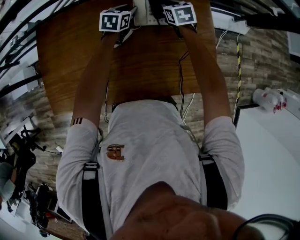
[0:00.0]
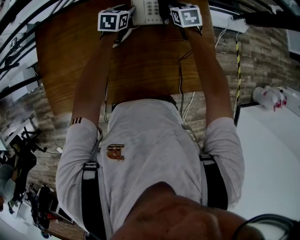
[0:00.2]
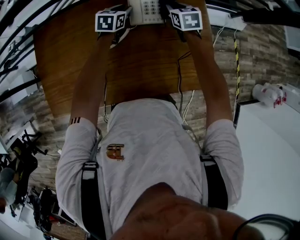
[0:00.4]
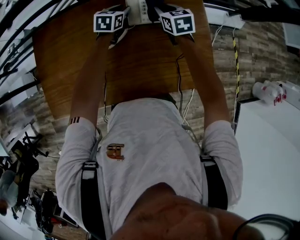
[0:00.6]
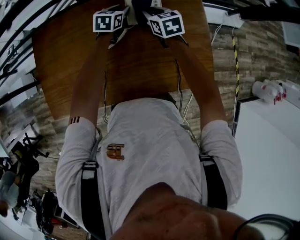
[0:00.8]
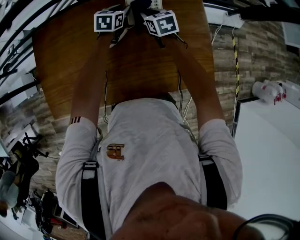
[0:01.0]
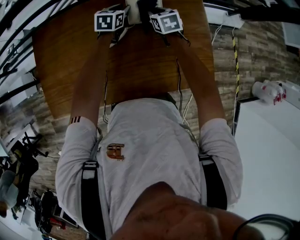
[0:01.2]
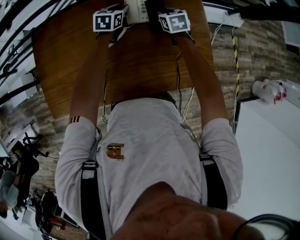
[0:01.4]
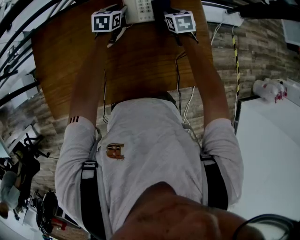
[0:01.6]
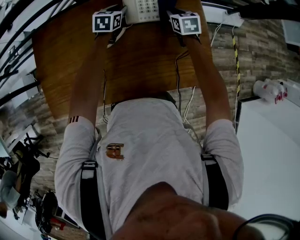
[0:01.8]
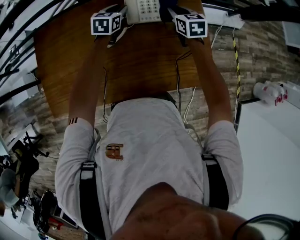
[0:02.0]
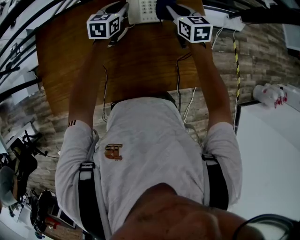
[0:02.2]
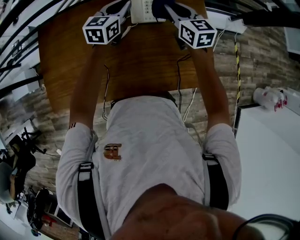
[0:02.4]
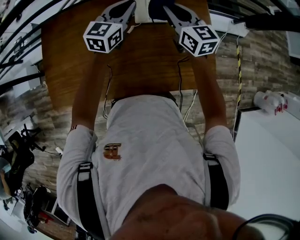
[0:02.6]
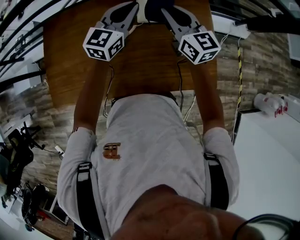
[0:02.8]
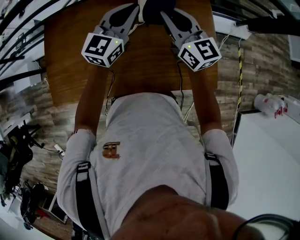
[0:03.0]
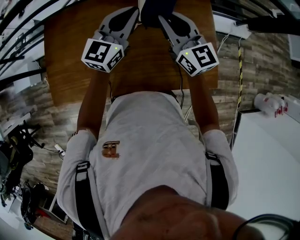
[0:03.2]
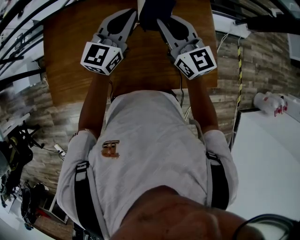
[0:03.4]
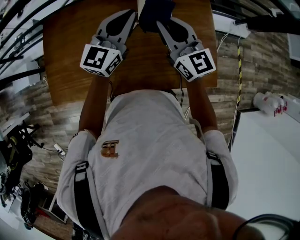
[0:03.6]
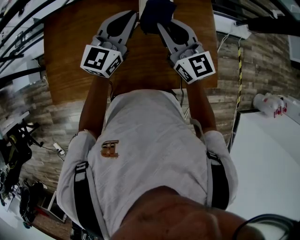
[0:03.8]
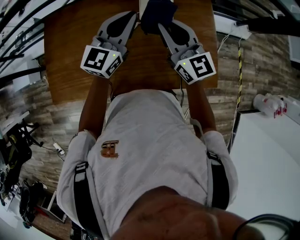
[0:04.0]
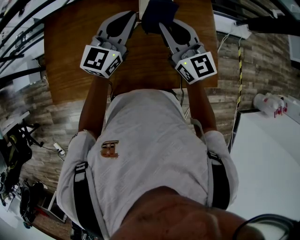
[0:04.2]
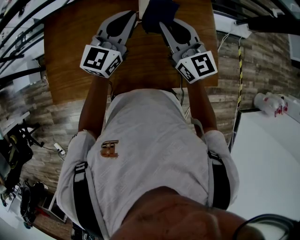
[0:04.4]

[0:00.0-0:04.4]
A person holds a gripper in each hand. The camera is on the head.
0:00.0 to 0:01.4: The right gripper goes left and right, roughly 10 cm each way, reversing 2 times.
0:01.4 to 0:03.0: Both grippers move upward and backward, about 25 cm. The right gripper angles its fingers upward, by roughly 50 degrees. Meanwhile the left gripper angles its fingers upward, by approximately 40 degrees, and closes up.
0:03.0 to 0:04.4: The right gripper moves roughly 5 cm.

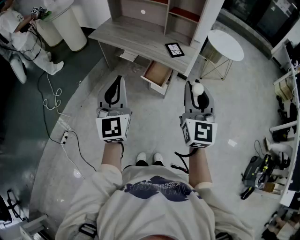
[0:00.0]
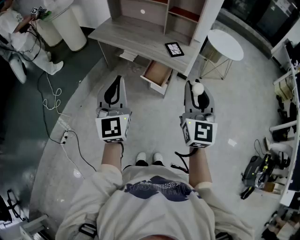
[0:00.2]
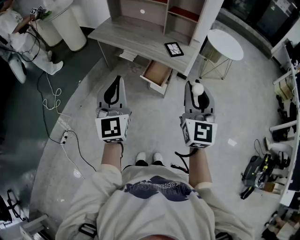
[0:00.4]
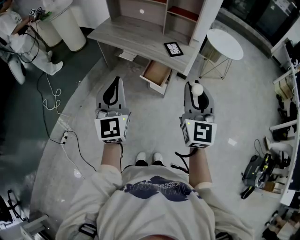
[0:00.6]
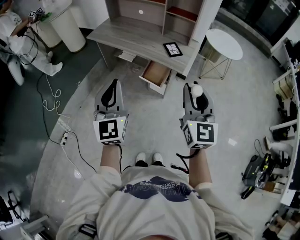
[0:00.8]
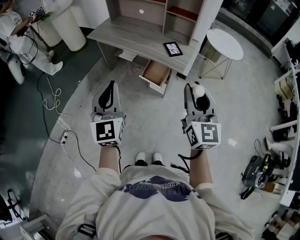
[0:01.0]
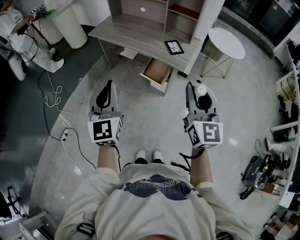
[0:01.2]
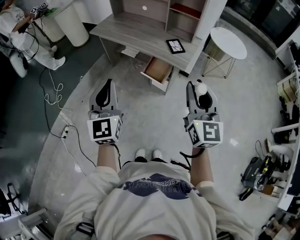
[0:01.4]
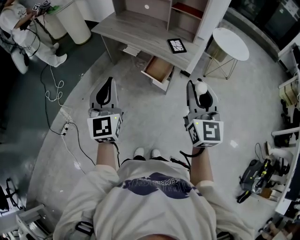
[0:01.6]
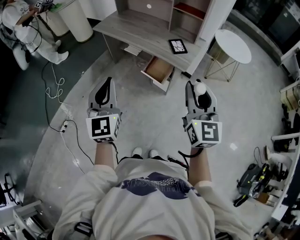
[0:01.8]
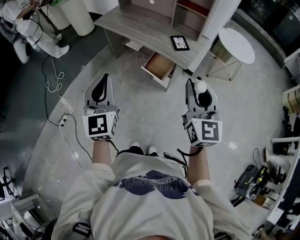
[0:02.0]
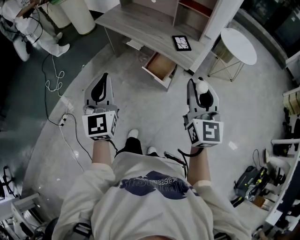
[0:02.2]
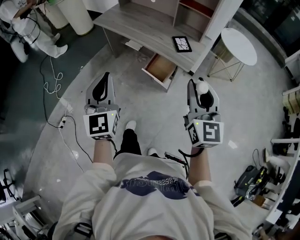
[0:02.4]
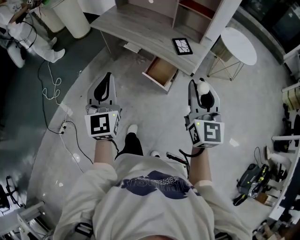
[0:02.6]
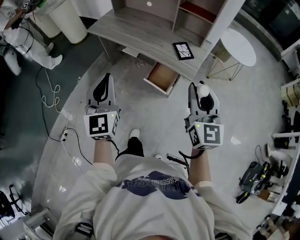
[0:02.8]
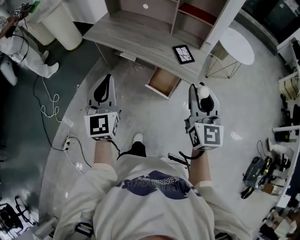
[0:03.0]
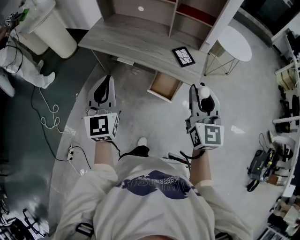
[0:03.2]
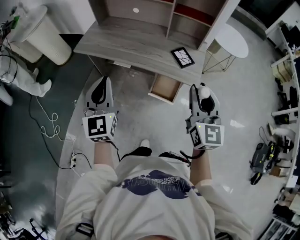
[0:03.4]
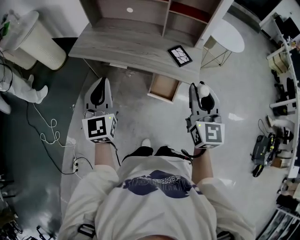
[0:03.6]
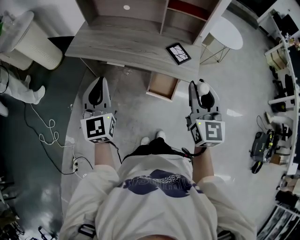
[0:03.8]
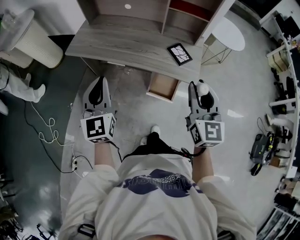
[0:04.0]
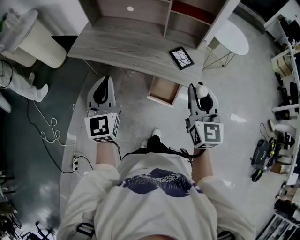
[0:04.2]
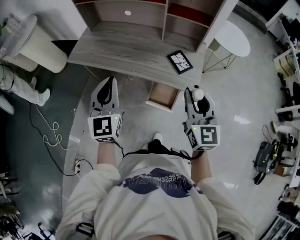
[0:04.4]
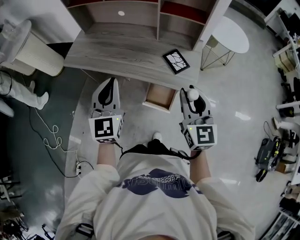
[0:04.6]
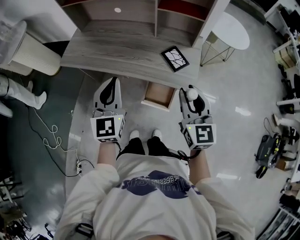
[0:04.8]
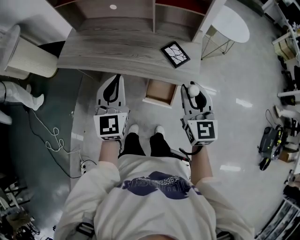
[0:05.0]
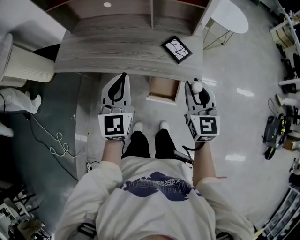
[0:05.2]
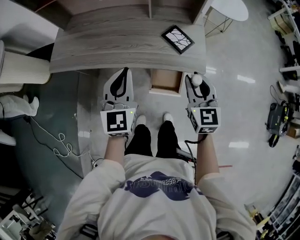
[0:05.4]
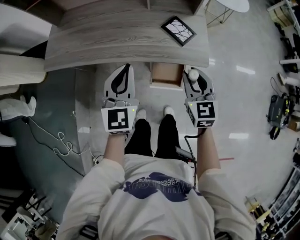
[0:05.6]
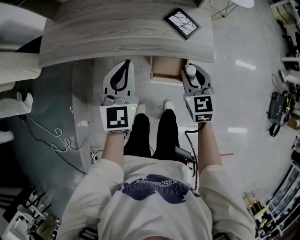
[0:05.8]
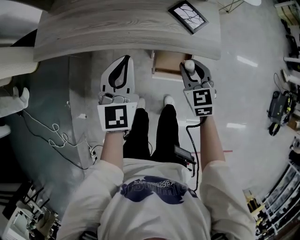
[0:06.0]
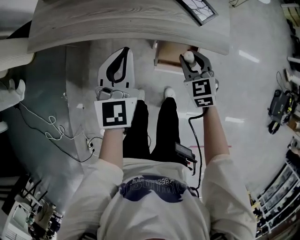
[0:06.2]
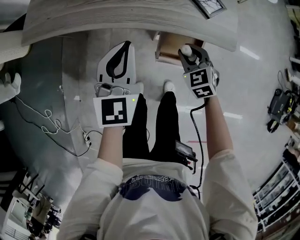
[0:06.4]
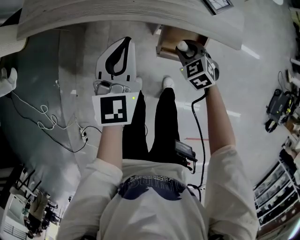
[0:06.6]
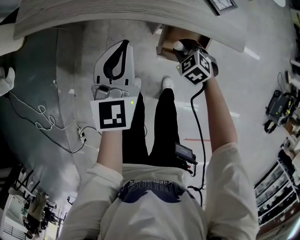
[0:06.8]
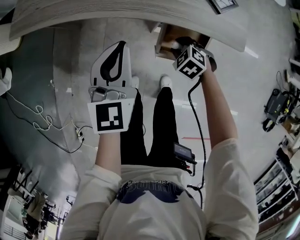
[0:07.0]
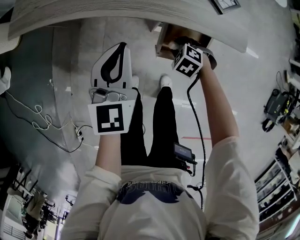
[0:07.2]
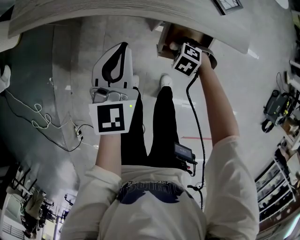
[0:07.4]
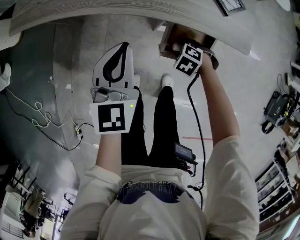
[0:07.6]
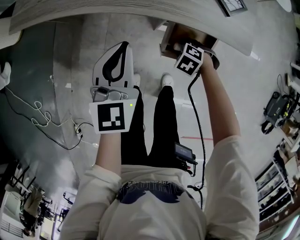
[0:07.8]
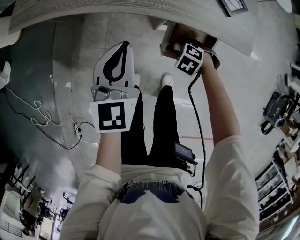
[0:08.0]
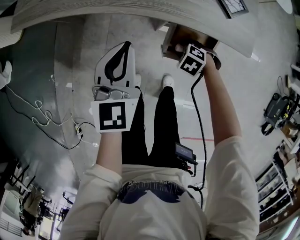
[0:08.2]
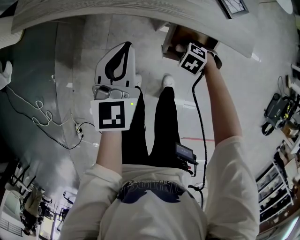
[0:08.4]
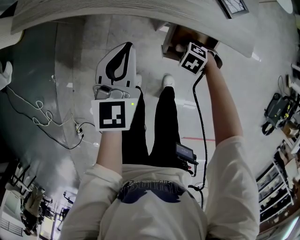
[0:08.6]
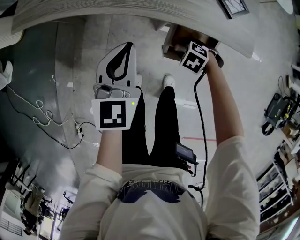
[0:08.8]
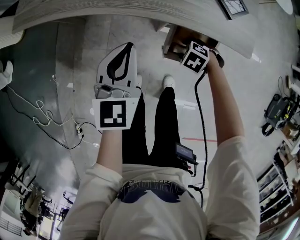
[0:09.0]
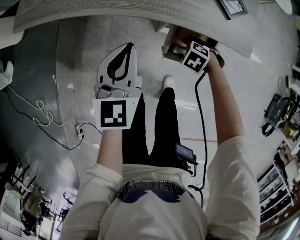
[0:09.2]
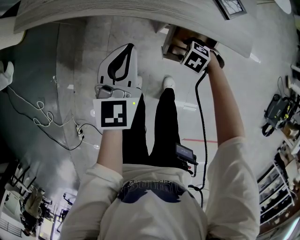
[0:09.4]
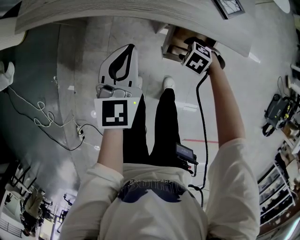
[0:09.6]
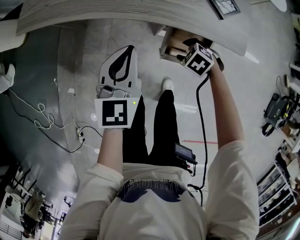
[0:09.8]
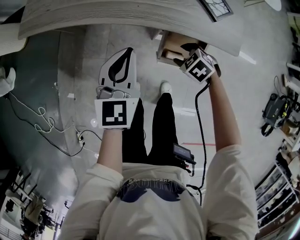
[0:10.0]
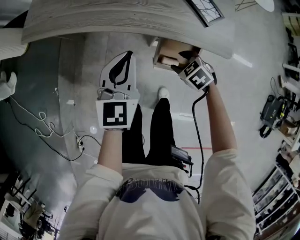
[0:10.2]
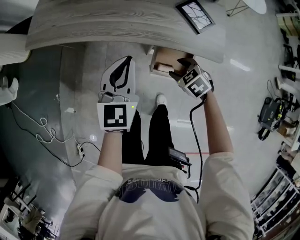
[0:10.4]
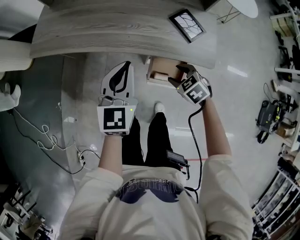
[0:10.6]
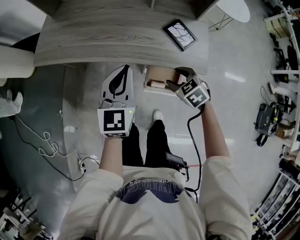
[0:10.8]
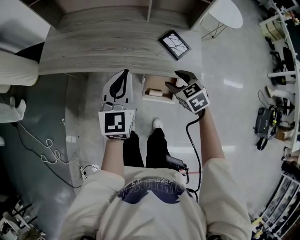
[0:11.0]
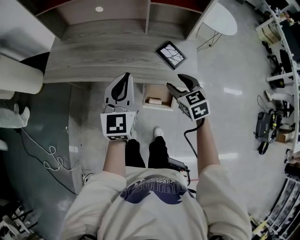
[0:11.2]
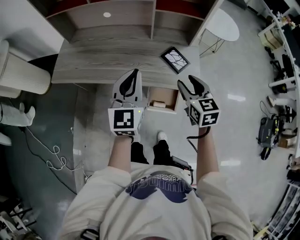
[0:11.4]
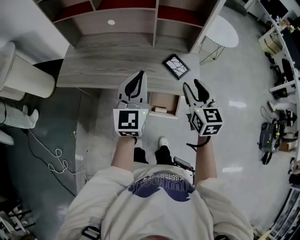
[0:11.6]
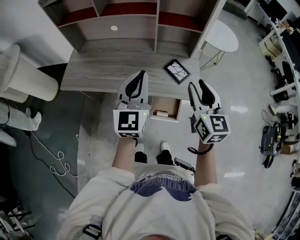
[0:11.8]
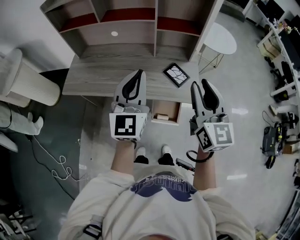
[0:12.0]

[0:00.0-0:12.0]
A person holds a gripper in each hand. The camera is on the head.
0:00.0 to 0:01.6: There are only small adjustments of the grippers.
0:01.6 to 0:03.0: The grippers both shift forward by about 20 cm.
0:03.0 to 0:04.4: The two grippers go some 15 cm forward.
0:04.4 to 0:06.0: The left gripper goes about 20 cm downward and forward, and changes its angle by roughly 20 degrees, while the right gripper is displaced downward by some 30 cm, and tilts its fingers approximately 30 degrees downward.
0:06.0 to 0:07.6: The right gripper moves downward, some 30 cm, and points its fingers approximately 50 degrees further downward. Meanwhile the left gripper heads downward, covering about 15 cm.
0:07.6 to 0:09.0: The right gripper opens up.
0:09.0 to 0:10.4: The left gripper moves upward, some 10 cm, while the right gripper travels upward by roughly 15 cm, and swivels some 30 degrees.
0:10.4 to 0:12.0: The left gripper moves upward, approximately 30 cm, and rotates approximately 30 degrees. The right gripper moves upward, about 50 cm, angles its fingers upward, by roughly 70 degrees, and closes its fingers.

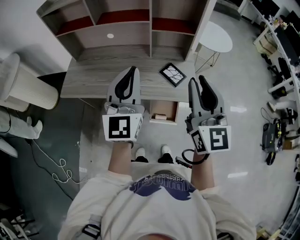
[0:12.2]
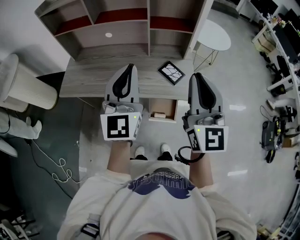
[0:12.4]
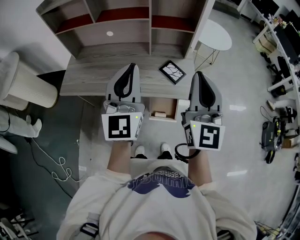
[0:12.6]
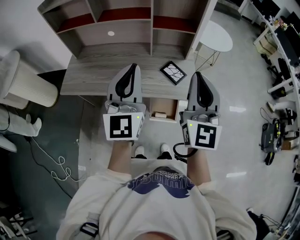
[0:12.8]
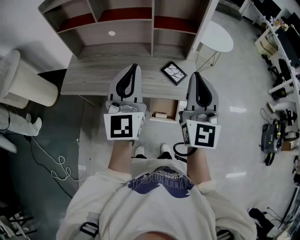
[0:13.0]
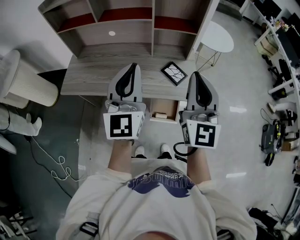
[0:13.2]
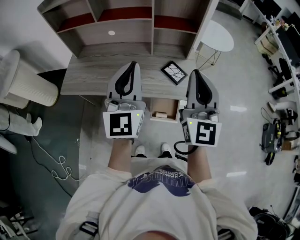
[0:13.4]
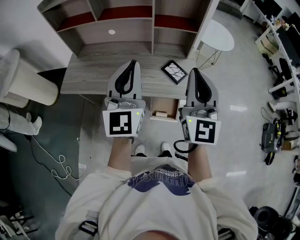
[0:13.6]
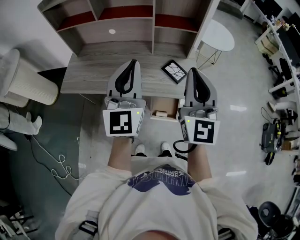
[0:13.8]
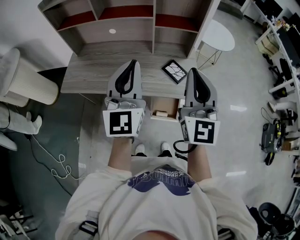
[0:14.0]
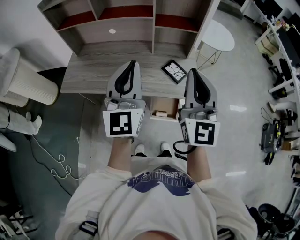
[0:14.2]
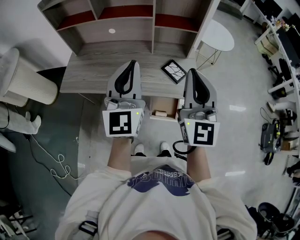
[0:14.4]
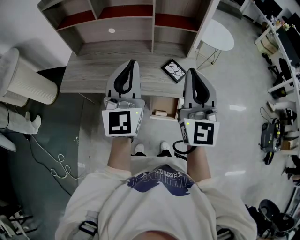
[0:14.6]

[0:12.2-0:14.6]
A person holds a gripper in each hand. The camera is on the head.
0:12.2 to 0:13.4: The right gripper closes its fingers.
0:13.4 to 0:14.6: The grippers stay close to where they were, moving slightly.

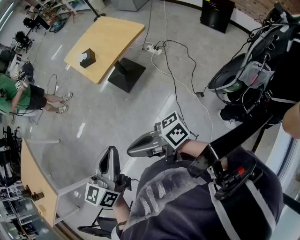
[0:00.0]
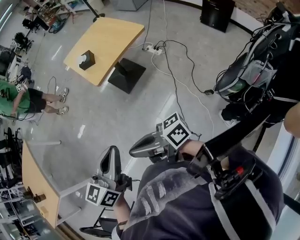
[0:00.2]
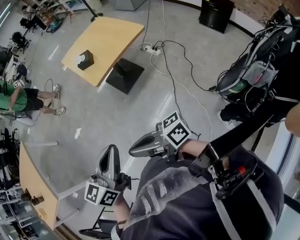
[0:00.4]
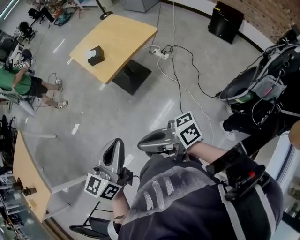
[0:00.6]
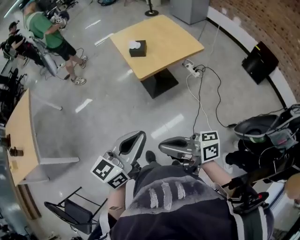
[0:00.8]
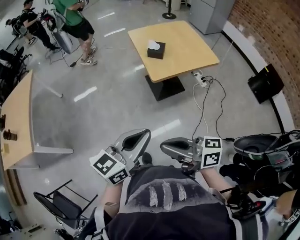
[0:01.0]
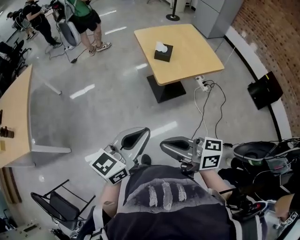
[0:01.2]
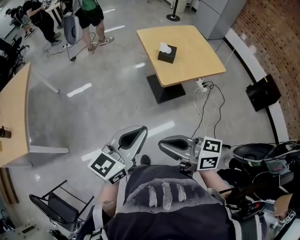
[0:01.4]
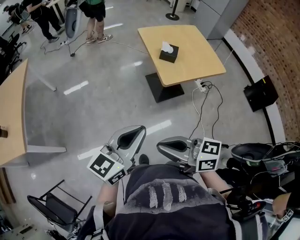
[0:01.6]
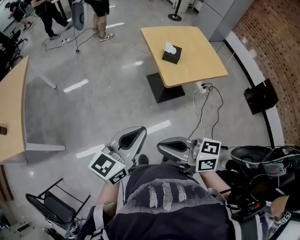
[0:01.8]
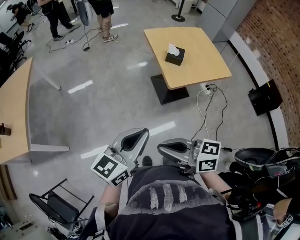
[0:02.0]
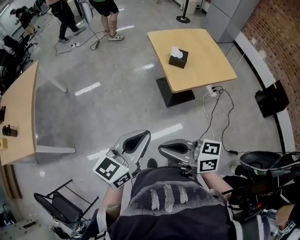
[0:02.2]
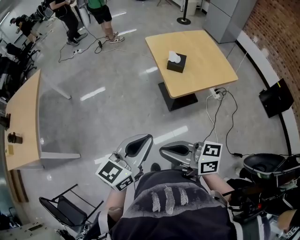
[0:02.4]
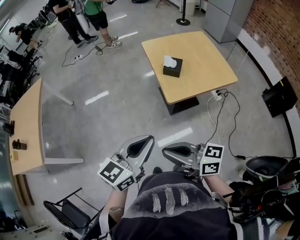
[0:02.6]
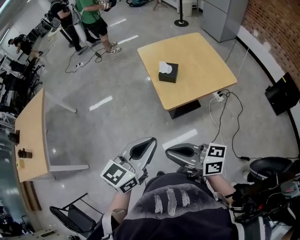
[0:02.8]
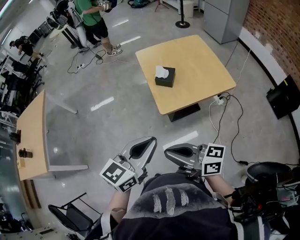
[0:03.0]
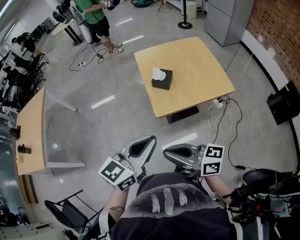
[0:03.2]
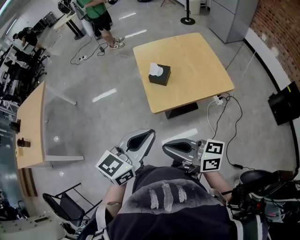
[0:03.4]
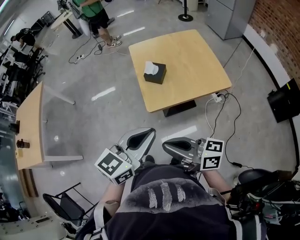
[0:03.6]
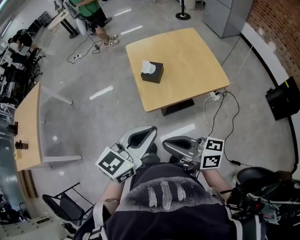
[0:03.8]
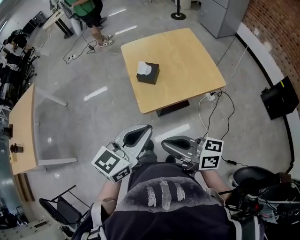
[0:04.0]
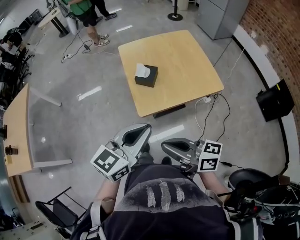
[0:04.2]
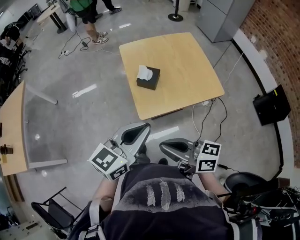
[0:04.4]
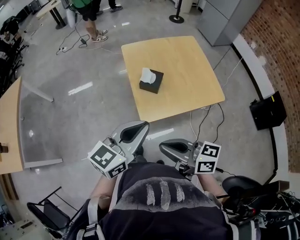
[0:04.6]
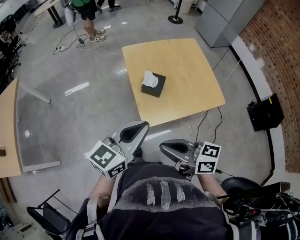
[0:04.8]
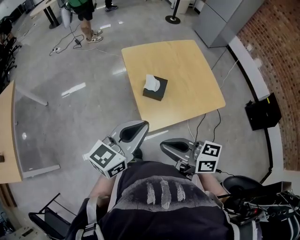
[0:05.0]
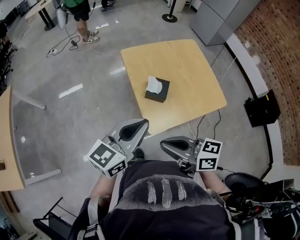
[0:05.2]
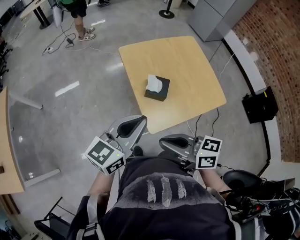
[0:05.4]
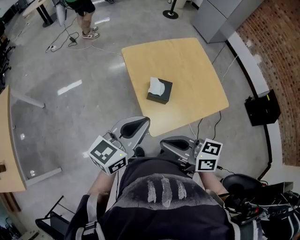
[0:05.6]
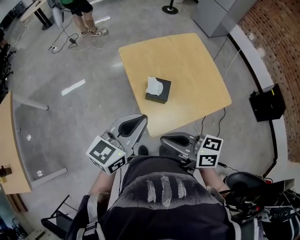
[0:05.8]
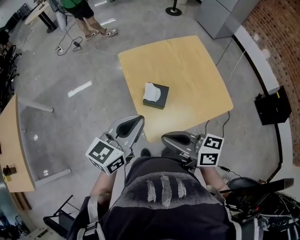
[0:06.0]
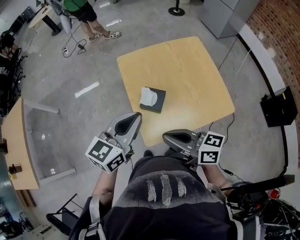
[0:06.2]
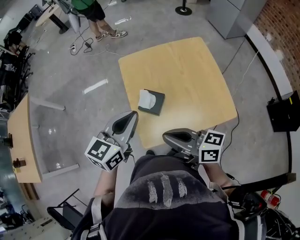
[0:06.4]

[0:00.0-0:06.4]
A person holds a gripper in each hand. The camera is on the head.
0:00.0 to 0:01.6: The grippers both shift forward and to the left by about 25 cm. The right gripper turns by roughly 30 degrees.
0:01.6 to 0:03.2: The right gripper shifts roughly 25 cm to the right and forward, while the left gripper is displaced to the right by about 25 cm.
0:03.2 to 0:04.8: Both grippers travel together forward, some 15 cm.
0:04.8 to 0:06.4: The right gripper travels forward and to the right by approximately 20 cm; the left gripper goes some 15 cm forward.
